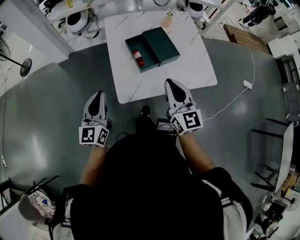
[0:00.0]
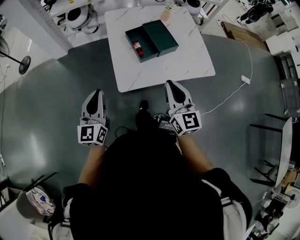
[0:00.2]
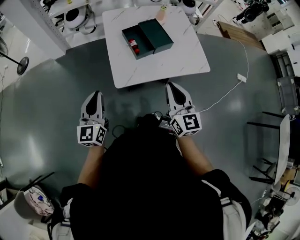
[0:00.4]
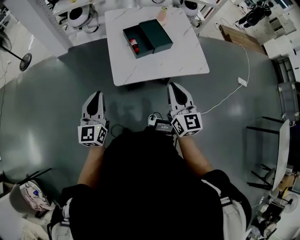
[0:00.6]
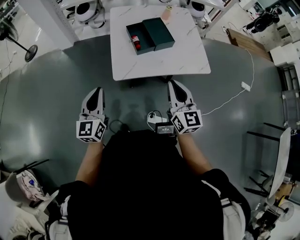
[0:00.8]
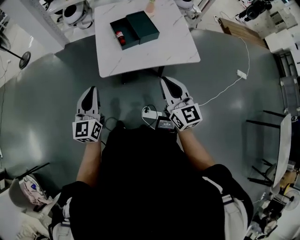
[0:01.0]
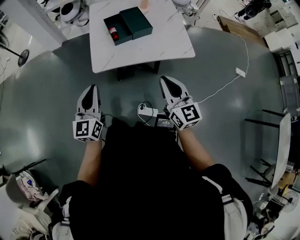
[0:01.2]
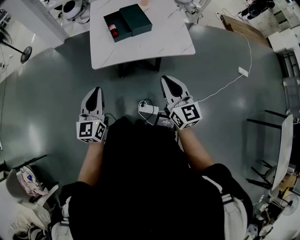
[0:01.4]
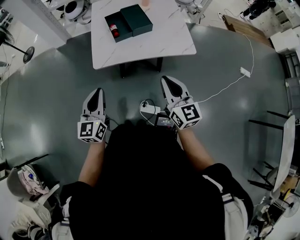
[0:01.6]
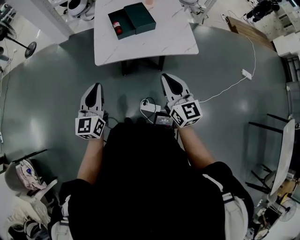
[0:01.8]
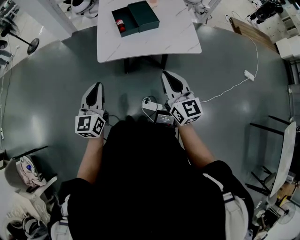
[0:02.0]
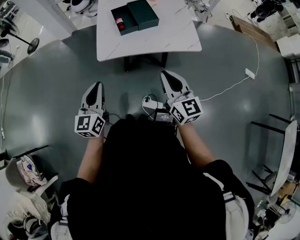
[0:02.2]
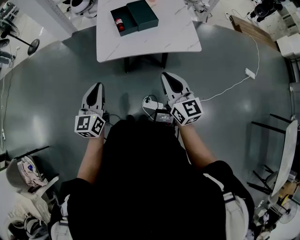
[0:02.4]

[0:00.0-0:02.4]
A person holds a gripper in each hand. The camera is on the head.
0:00.0 to 0:01.2: Both grippers move backward and to the right, about 20 cm.
0:01.2 to 0:02.4: The left gripper ends up roughly 5 cm from where it was.

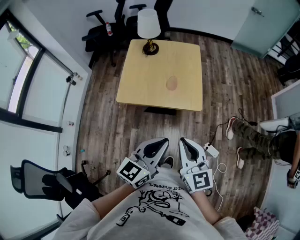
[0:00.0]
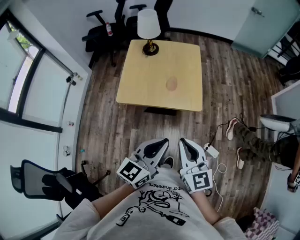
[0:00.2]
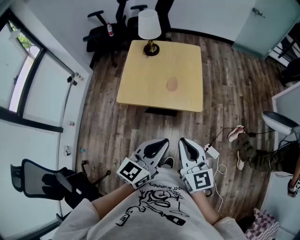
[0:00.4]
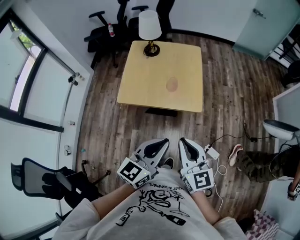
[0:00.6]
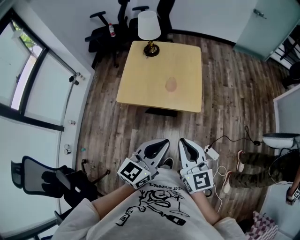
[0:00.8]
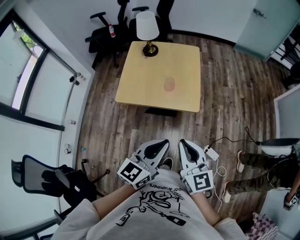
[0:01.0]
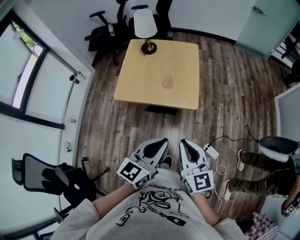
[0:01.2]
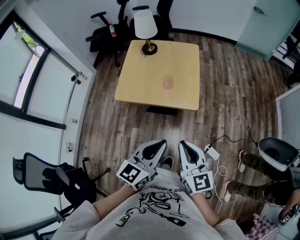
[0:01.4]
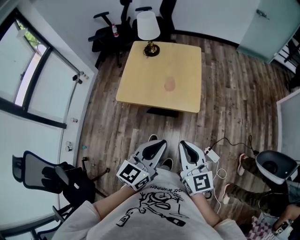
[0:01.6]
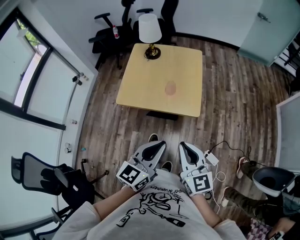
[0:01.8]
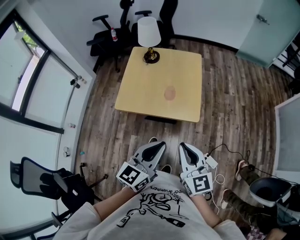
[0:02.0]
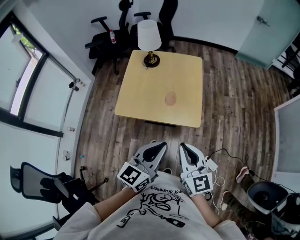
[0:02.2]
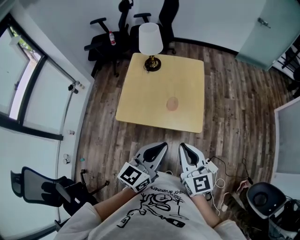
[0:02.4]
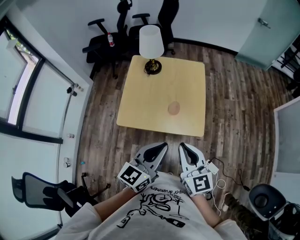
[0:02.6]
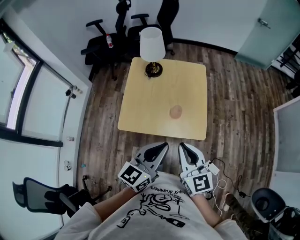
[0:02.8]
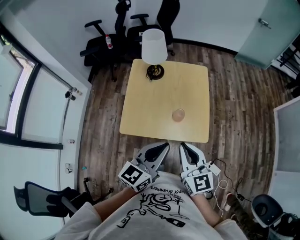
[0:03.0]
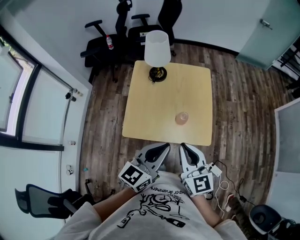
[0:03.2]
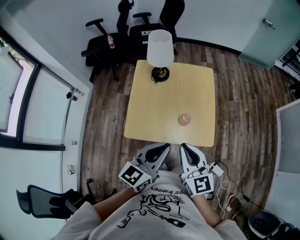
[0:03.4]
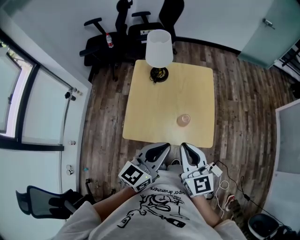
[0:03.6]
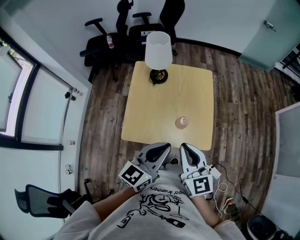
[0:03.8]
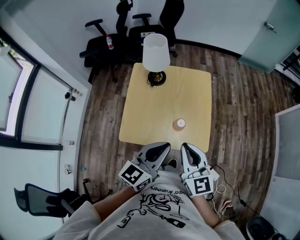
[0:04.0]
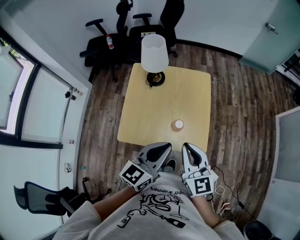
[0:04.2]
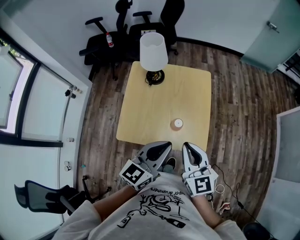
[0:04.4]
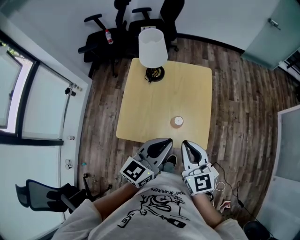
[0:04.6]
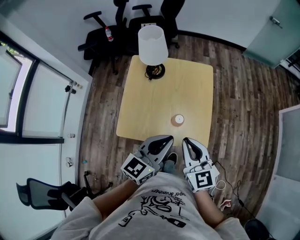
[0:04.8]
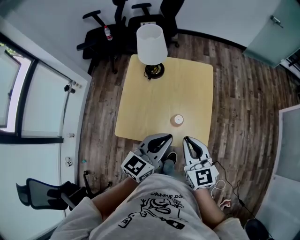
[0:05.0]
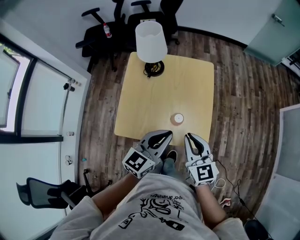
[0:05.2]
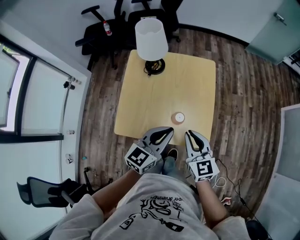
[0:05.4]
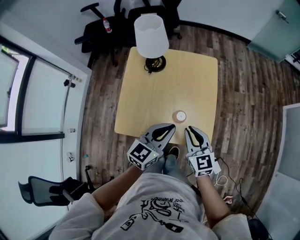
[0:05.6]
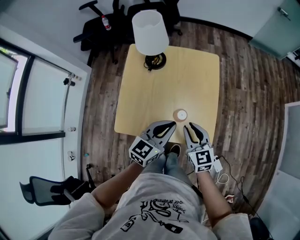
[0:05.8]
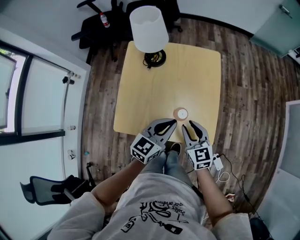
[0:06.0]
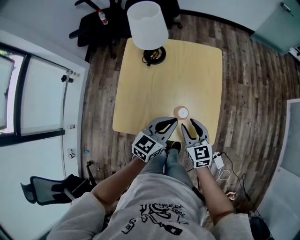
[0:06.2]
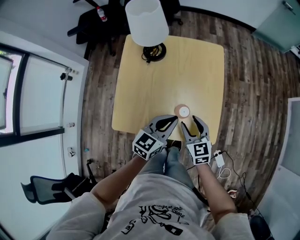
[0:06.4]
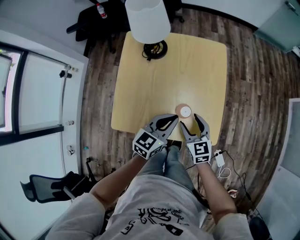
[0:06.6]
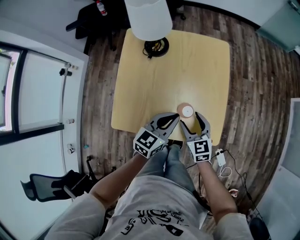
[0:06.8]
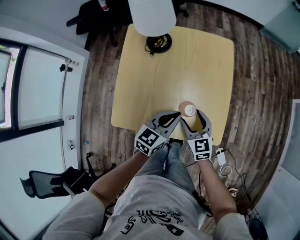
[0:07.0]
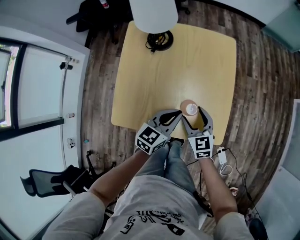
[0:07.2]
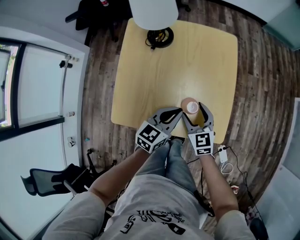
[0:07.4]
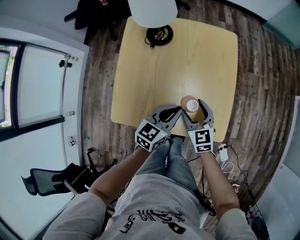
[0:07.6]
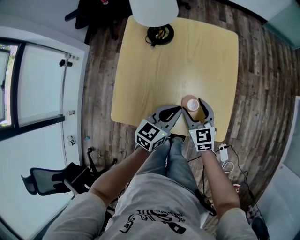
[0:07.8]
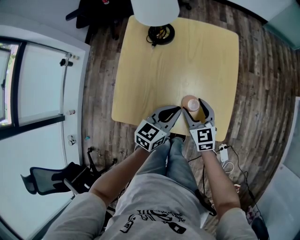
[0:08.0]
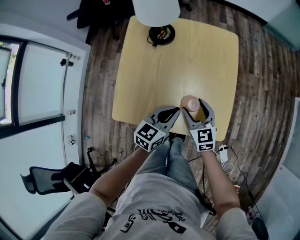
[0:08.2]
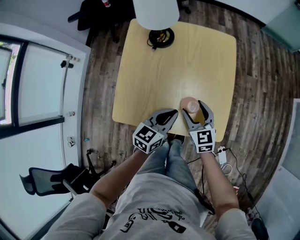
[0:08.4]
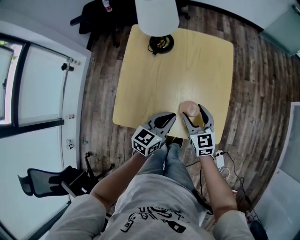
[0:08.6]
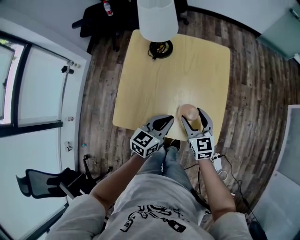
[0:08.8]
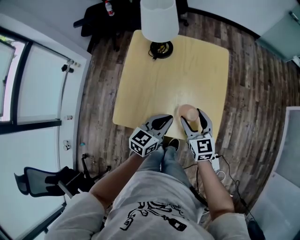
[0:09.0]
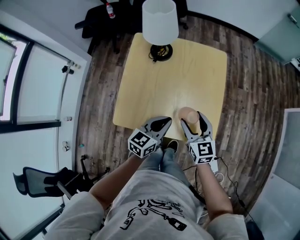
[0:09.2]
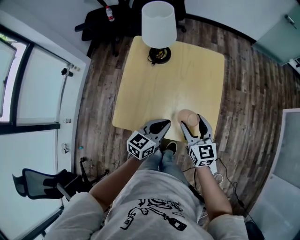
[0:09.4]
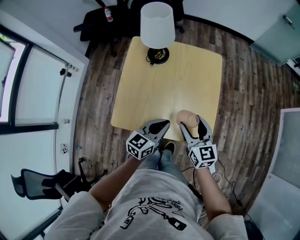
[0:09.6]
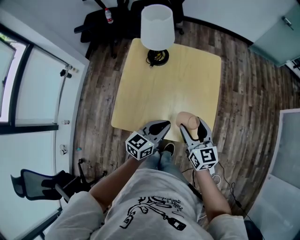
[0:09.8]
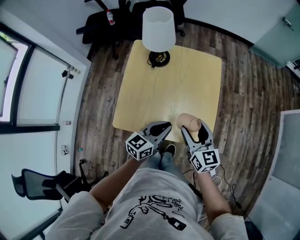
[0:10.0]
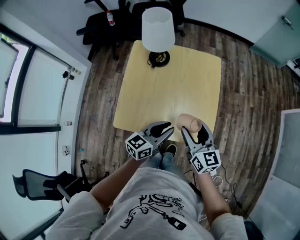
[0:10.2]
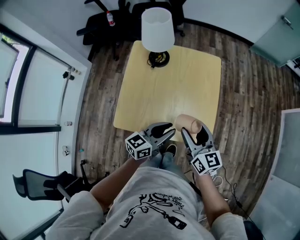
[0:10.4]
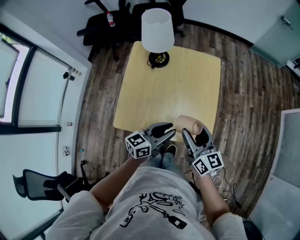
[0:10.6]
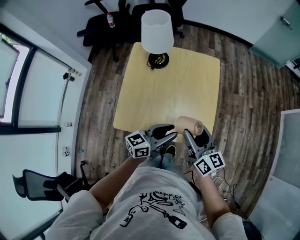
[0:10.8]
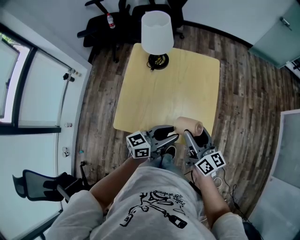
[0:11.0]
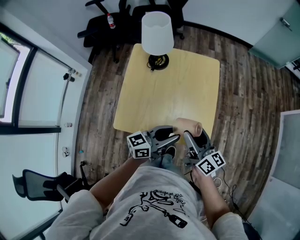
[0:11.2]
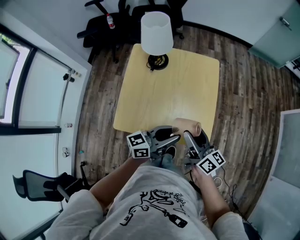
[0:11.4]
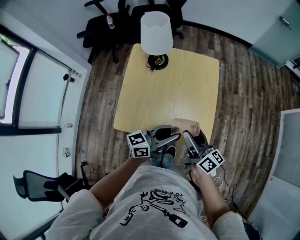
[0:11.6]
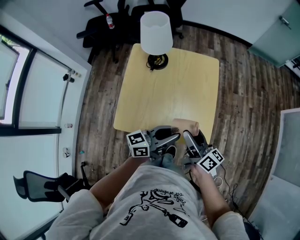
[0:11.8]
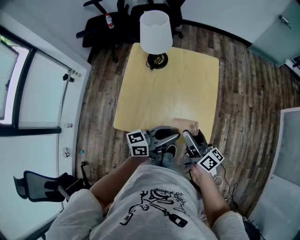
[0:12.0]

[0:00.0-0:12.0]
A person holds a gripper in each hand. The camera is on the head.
0:00.0 to 0:01.6: The right gripper moves to the right, approximately 5 cm. The left gripper shifts by roughly 5 cm.
0:01.6 to 0:03.0: The two grippers go some 20 cm forward and to the left.
0:03.0 to 0:04.4: Both grippers travel together forward, some 10 cm.
0:04.4 to 0:06.0: The right gripper shifts roughly 20 cm downward, while the left gripper is displaced downward and forward by approximately 15 cm.
0:06.0 to 0:07.6: The grippers both shift downward by roughly 10 cm. The right gripper opens up.
0:07.6 to 0:09.0: The right gripper goes approximately 10 cm upward. The left gripper changes place by approximately 5 cm.
0:09.0 to 0:10.4: The left gripper travels upward by roughly 5 cm, and opens its fingers, while the right gripper travels upward by roughly 10 cm, and swivels approximately 20 degrees.
0:10.4 to 0:12.0: The left gripper goes about 5 cm upward, and rotates about 20 degrees. The right gripper rotates some 40 degrees.

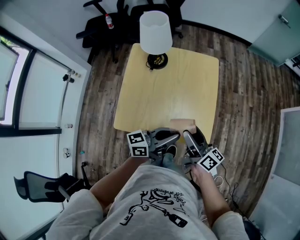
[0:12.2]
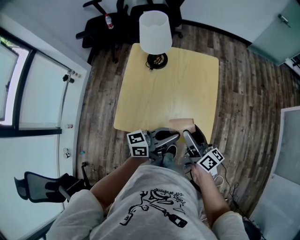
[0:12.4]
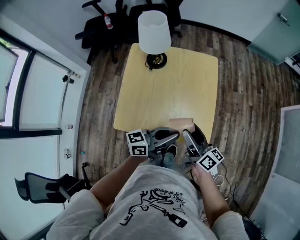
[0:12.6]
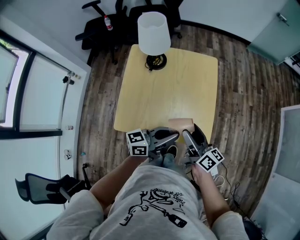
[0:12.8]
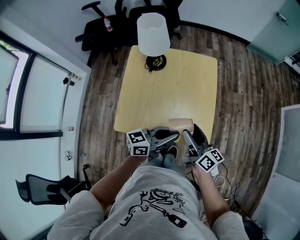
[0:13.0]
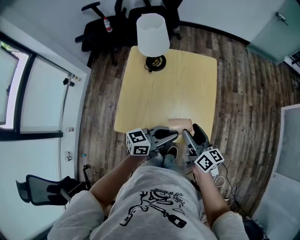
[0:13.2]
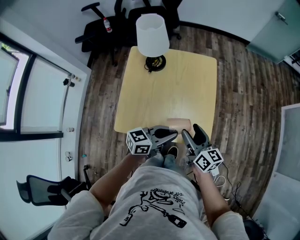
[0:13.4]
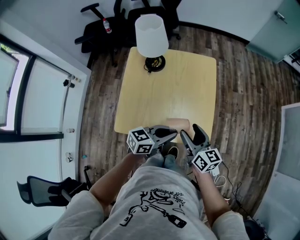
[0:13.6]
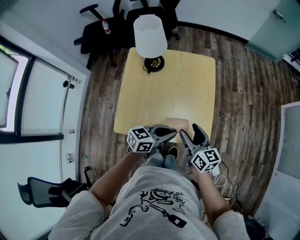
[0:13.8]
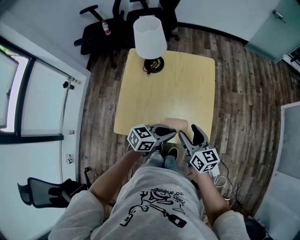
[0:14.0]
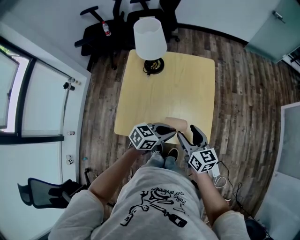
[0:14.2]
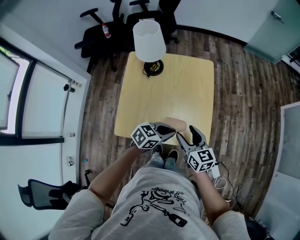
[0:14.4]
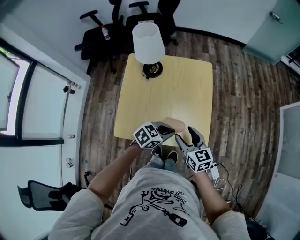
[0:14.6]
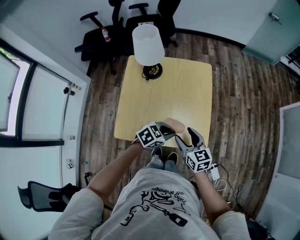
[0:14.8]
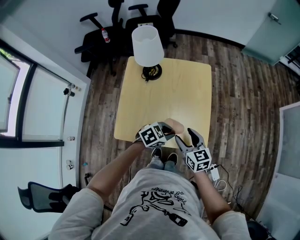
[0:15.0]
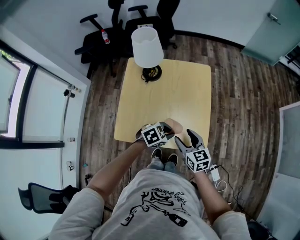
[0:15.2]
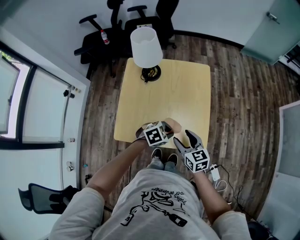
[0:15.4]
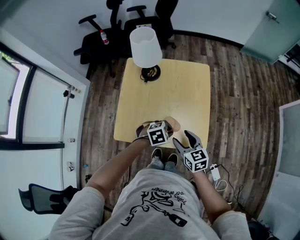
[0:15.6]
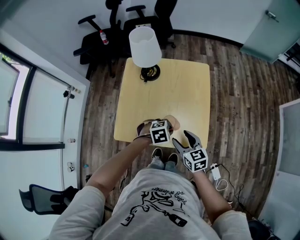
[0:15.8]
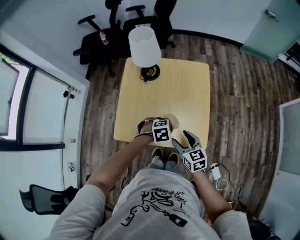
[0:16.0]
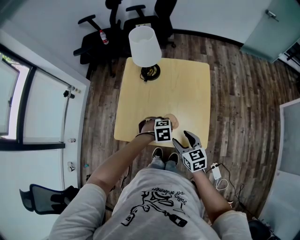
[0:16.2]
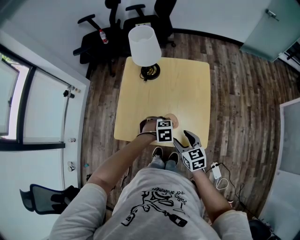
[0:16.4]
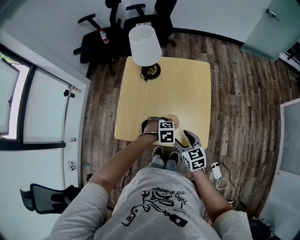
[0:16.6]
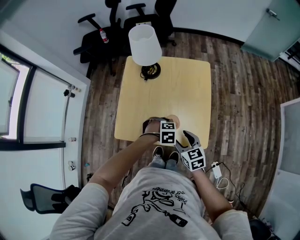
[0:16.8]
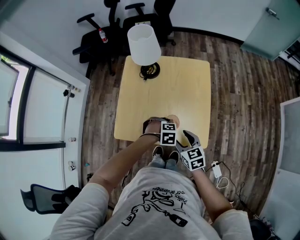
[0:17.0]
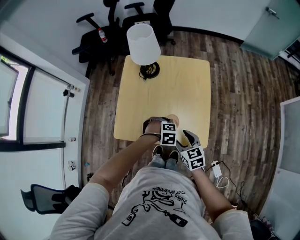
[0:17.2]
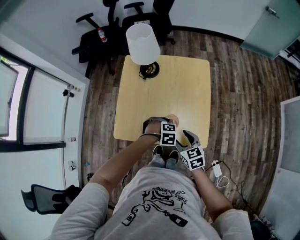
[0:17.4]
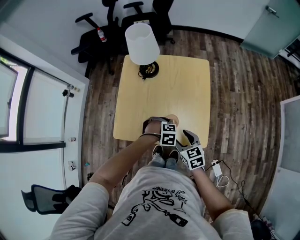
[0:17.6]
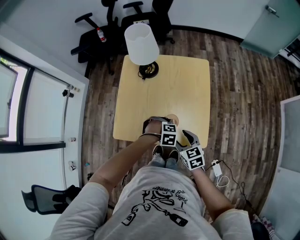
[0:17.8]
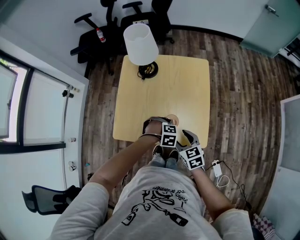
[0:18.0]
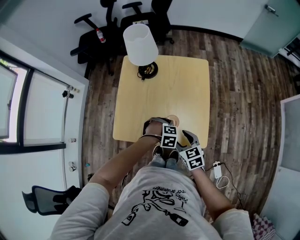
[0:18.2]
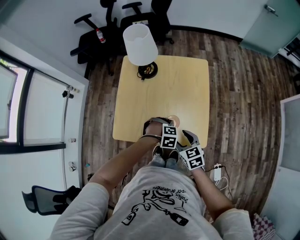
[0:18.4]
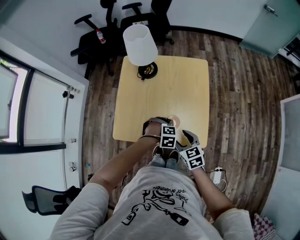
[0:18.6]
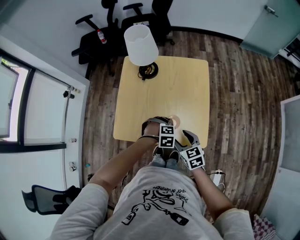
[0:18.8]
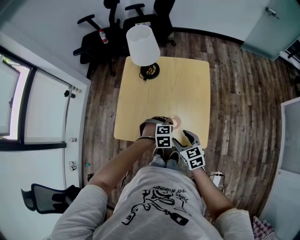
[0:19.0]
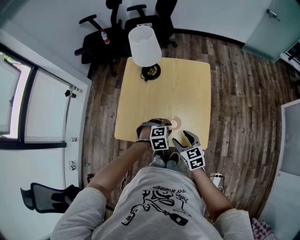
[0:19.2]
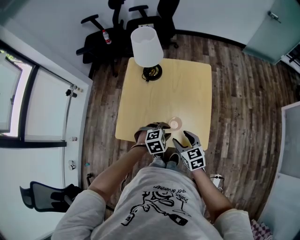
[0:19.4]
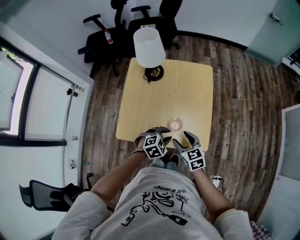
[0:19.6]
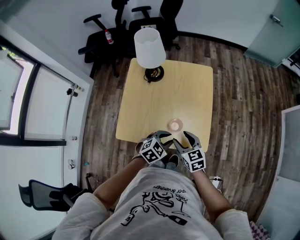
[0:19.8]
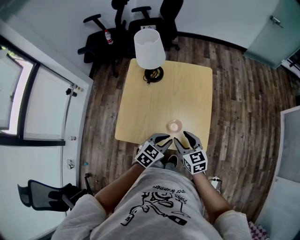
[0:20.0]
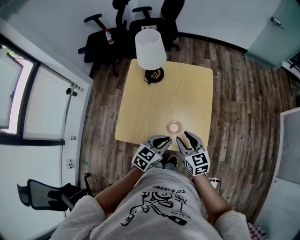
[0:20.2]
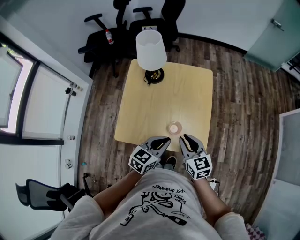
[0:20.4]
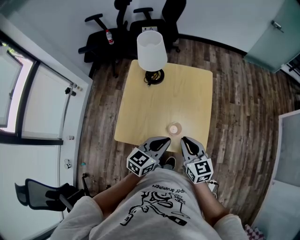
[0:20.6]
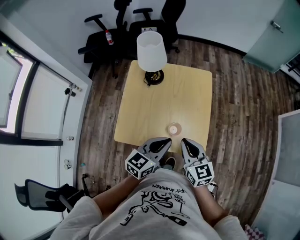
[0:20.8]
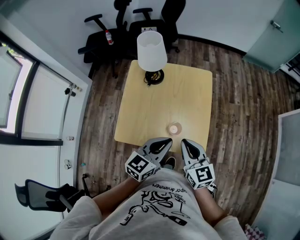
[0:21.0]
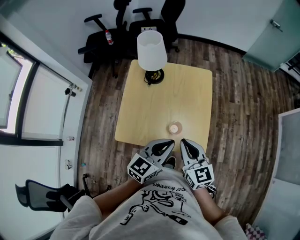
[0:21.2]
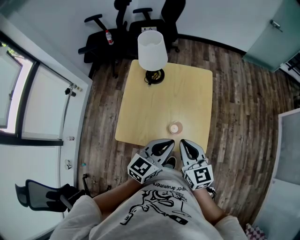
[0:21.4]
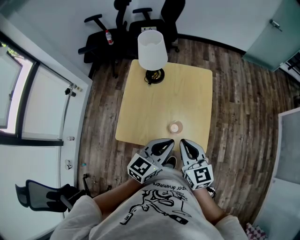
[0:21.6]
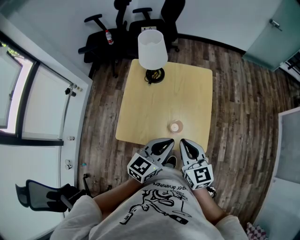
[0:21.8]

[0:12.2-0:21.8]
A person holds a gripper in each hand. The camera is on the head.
0:12.2 to 0:13.8: The right gripper rotates approximately 30 degrees. The left gripper travels downward by approximately 5 cm, and swivels roughly 30 degrees.
0:13.8 to 0:15.4: The left gripper shifts about 10 cm downward, and points its fingers roughly 40 degrees further downward.
0:15.4 to 0:17.0: The left gripper moves downward, roughly 5 cm, and changes its angle by roughly 30 degrees.
0:17.0 to 0:18.6: The grippers make only small movements.
0:18.6 to 0:20.2: The right gripper travels upward by roughly 5 cm; the left gripper goes about 15 cm upward, and points its fingers some 50 degrees further upward.
0:20.2 to 0:21.8: Both grippers travel together upward, approximately 10 cm. The right gripper closes its fingers.
